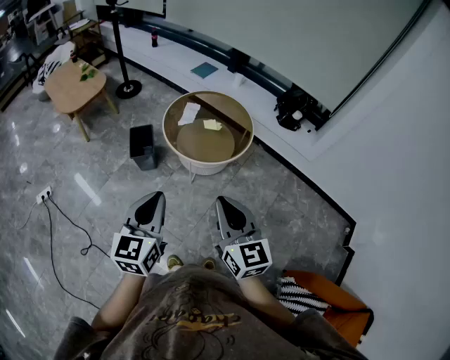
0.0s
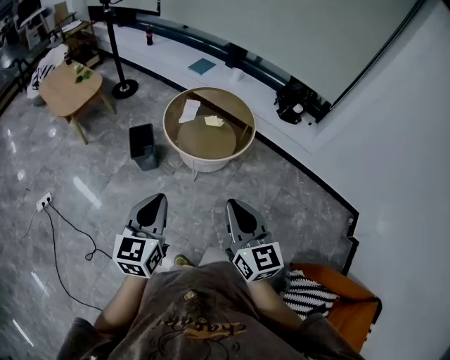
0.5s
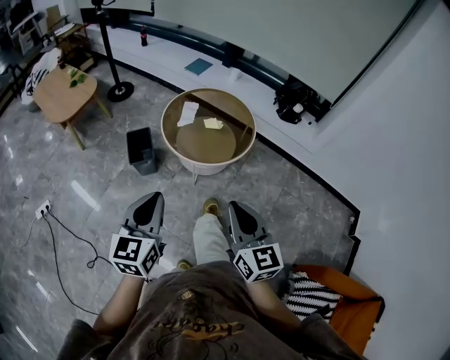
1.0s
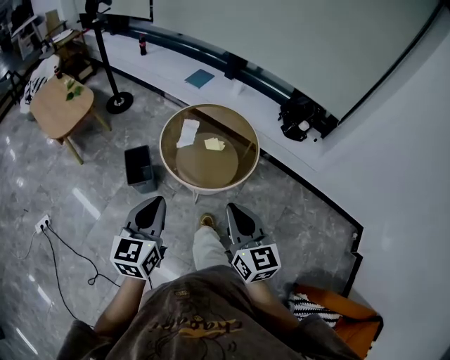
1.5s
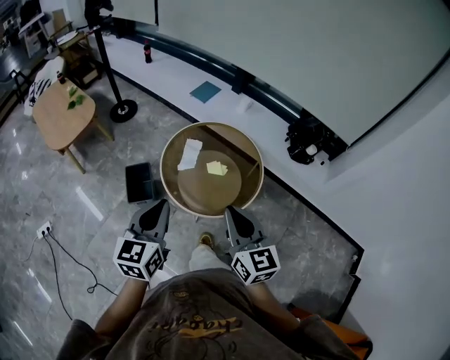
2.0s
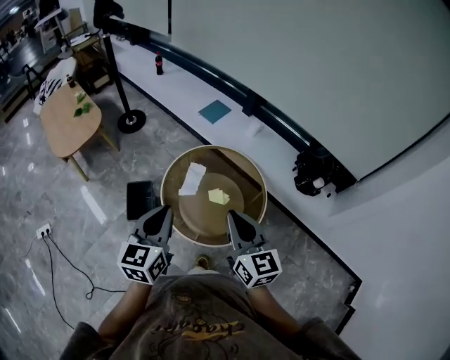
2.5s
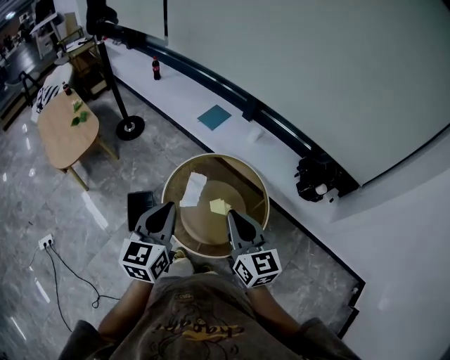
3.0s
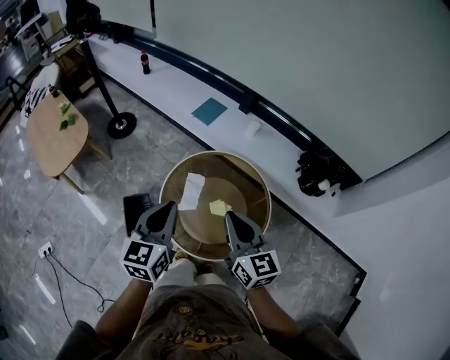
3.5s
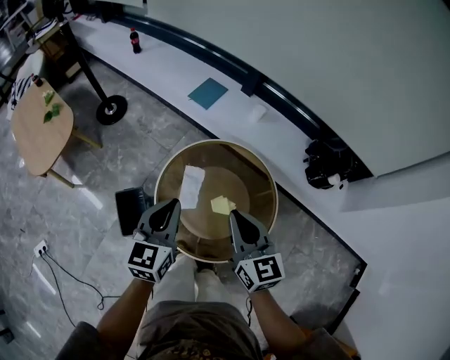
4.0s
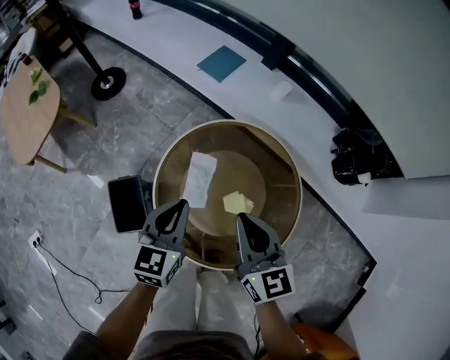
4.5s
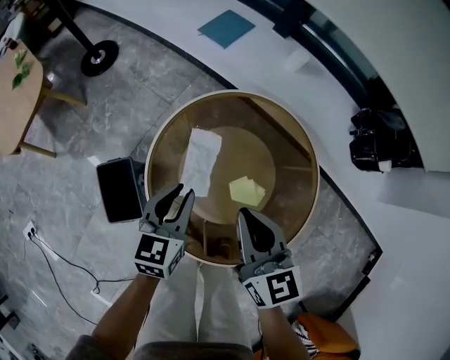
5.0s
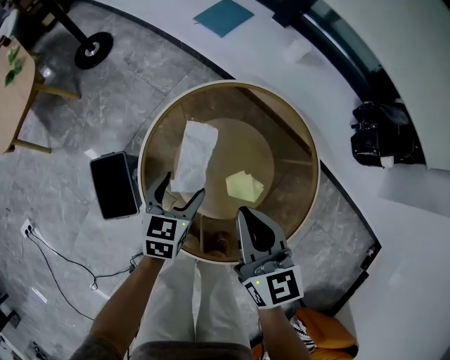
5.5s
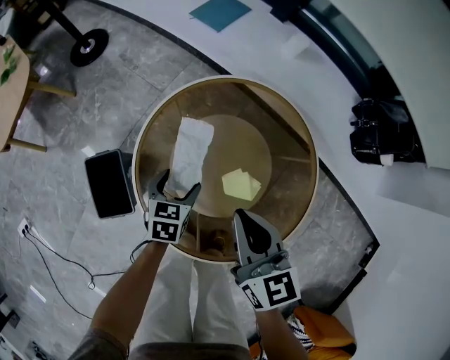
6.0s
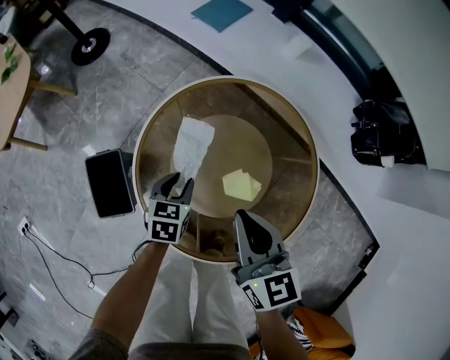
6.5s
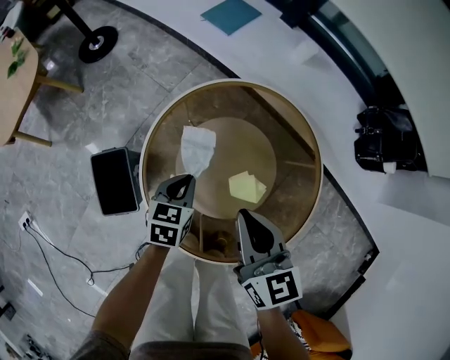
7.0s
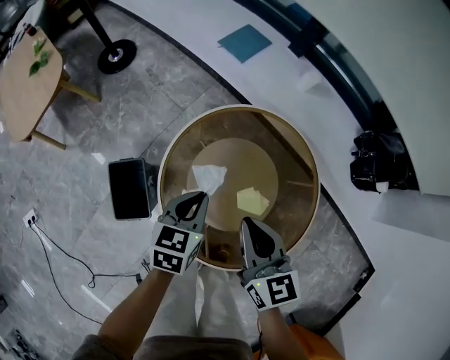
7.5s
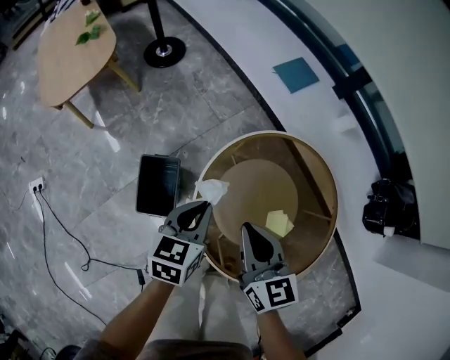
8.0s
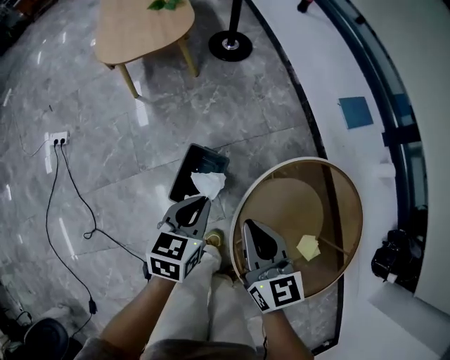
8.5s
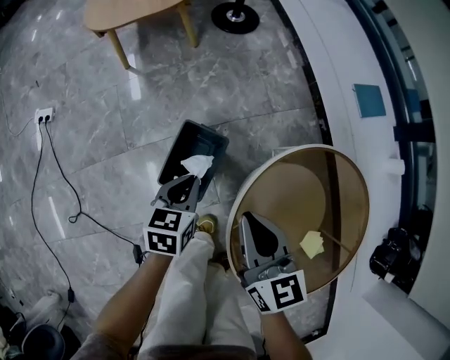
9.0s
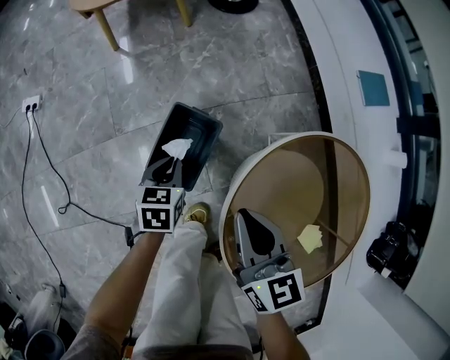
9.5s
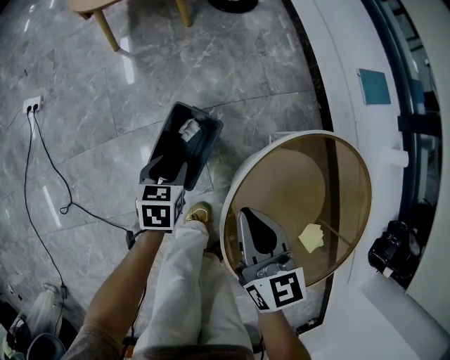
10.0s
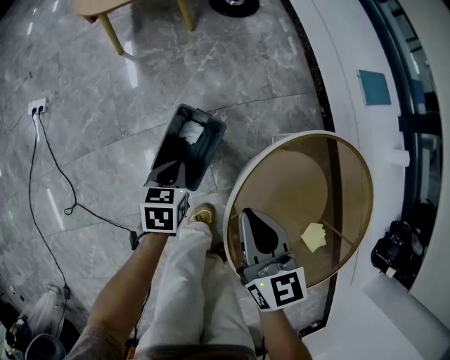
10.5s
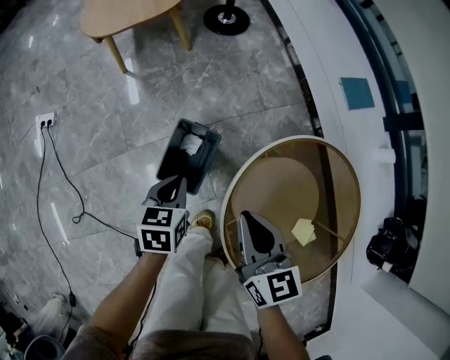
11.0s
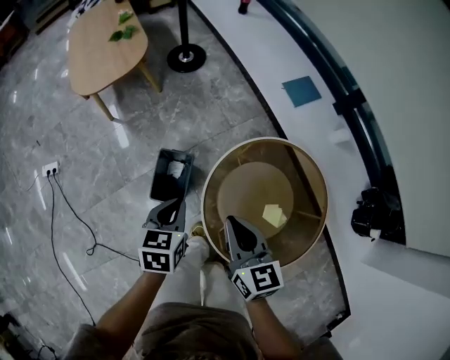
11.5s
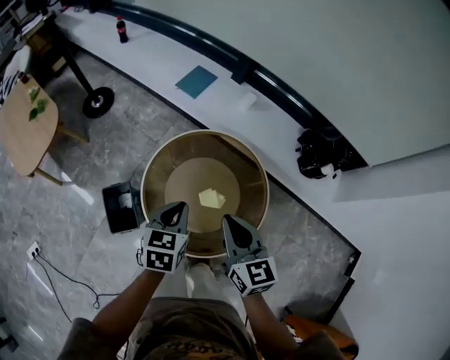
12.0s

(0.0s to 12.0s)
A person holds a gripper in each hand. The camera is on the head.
0.0s - 2.0s: Both grippers travel together forward, roughly 30 cm.
2.0s - 4.0s: Both grippers travel together forward, roughly 30 cm.
4.0s - 6.0s: The left gripper heads downward, covering about 40 cm, tips its fingers downward by approximately 30 degrees, and opens; the right gripper travels downward by some 20 cm.
6.0s - 8.0s: The right gripper heads to the left, covering about 15 cm. The left gripper goes some 20 cm upward and to the left, changes its angle by about 20 degrees, and closes up.
8.0s - 10.0s: The left gripper heads downward, covering some 25 cm, changes its angle by about 30 degrees, and opens its fingers. The right gripper moves roughly 20 cm, and changes its angle by roughly 20 degrees.
10.0s - 12.0s: The left gripper shifts some 35 cm upward, changes its angle by about 50 degrees, and closes up; the right gripper changes place by about 40 cm, and turns by roughly 40 degrees.

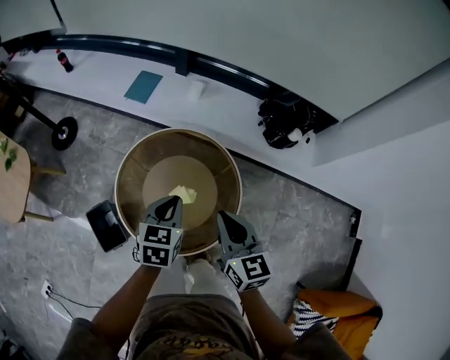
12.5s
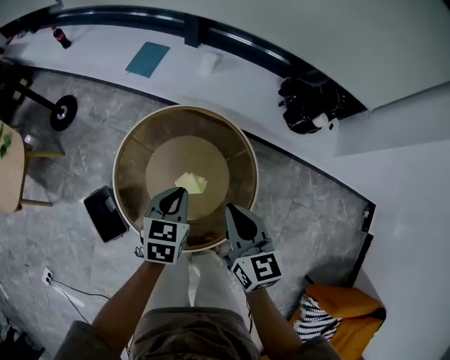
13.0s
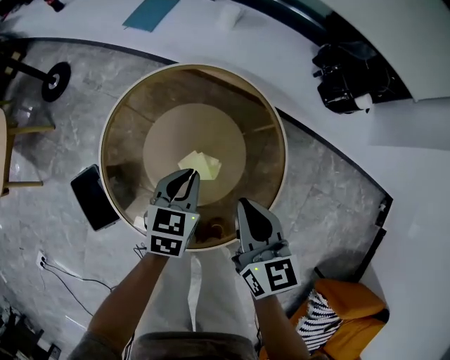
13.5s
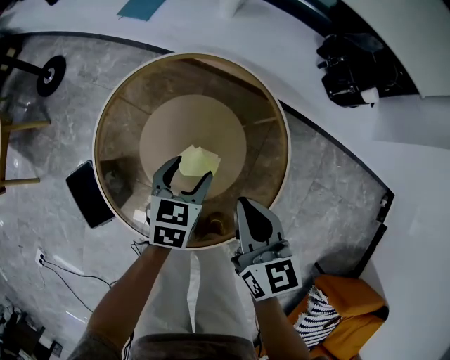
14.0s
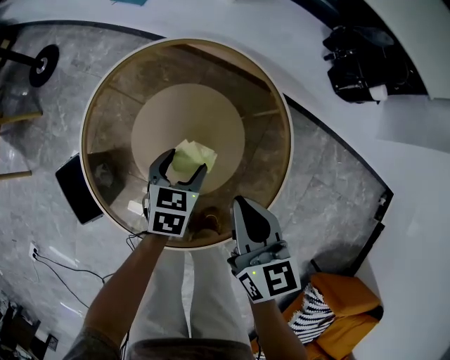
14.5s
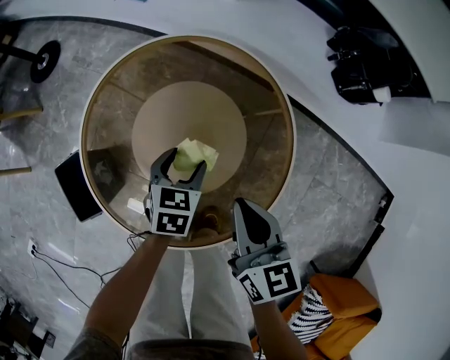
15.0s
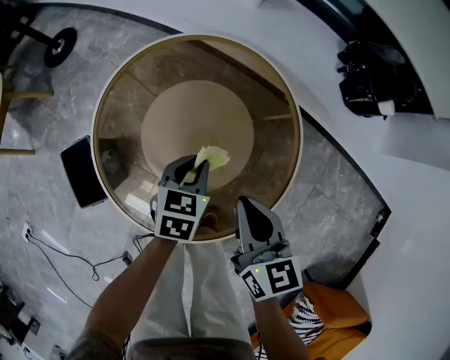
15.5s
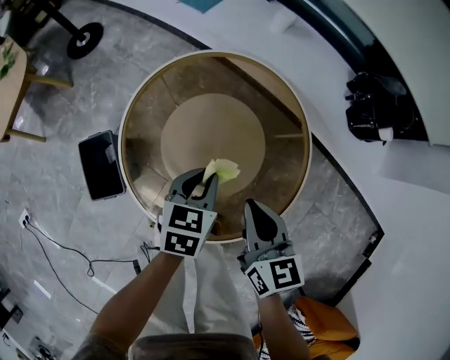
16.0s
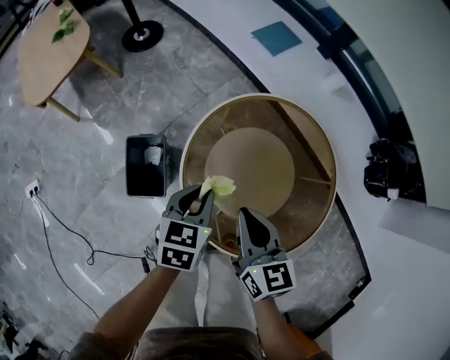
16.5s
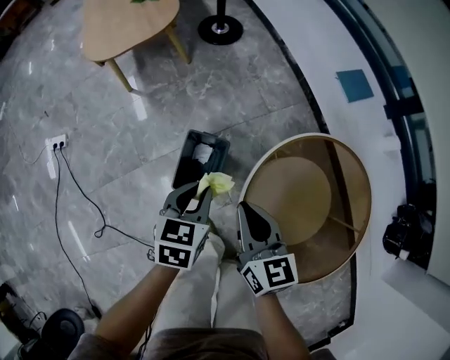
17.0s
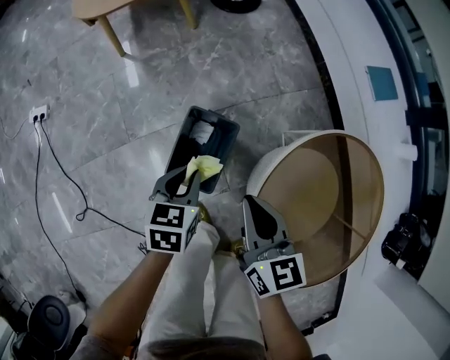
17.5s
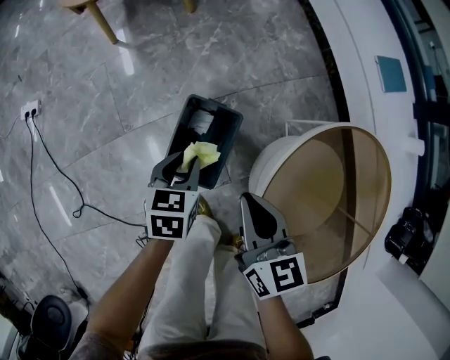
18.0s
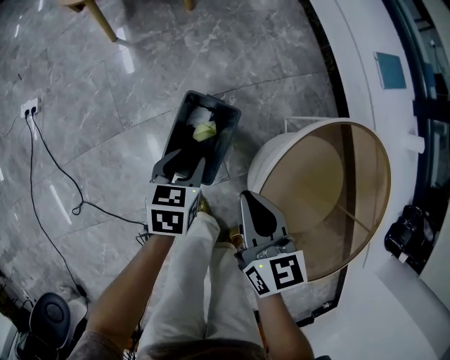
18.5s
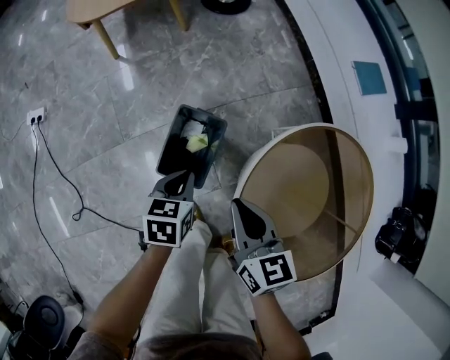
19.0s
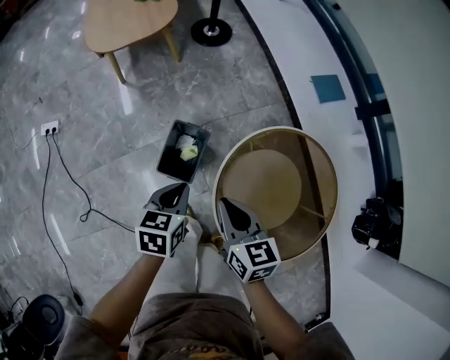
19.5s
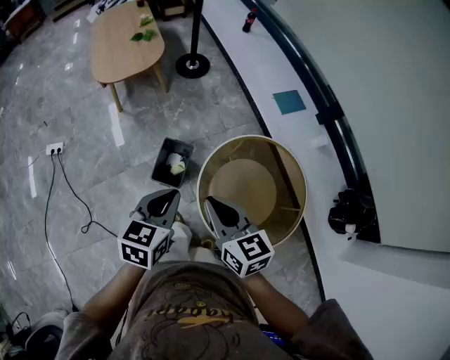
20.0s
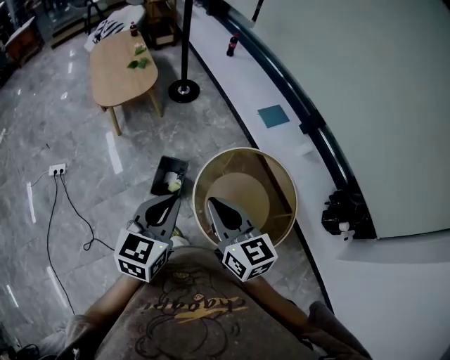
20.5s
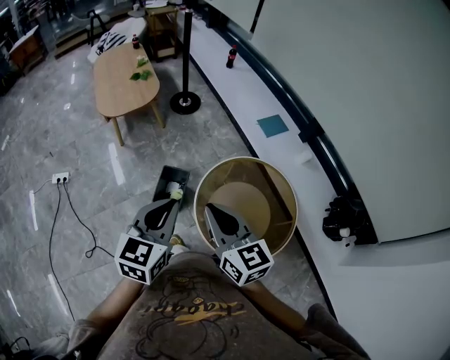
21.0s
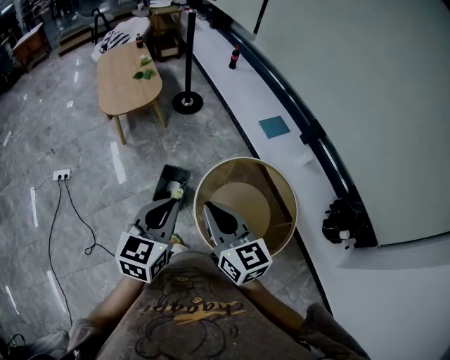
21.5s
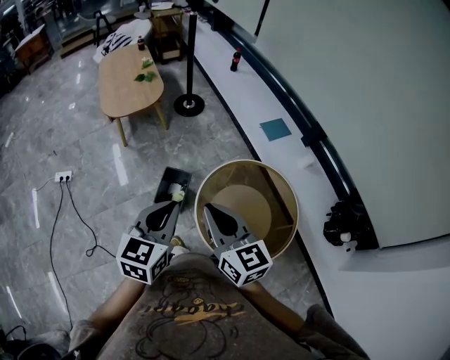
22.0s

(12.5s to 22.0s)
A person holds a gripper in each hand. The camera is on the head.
12.5s - 14.5s: Both grippers travel together downward, some 30 cm. The left gripper opens.
14.5s - 16.5s: The right gripper heads to the left, covering approximately 20 cm, and rotates about 30 degrees; the left gripper travels to the left and upward by some 25 cm, turns by roughly 30 degrees, and closes up.
16.5s - 18.0s: The left gripper is displaced to the left and downward by about 35 cm, and changes its angle by roughly 30 degrees; the right gripper moves to the left, downward and forward, some 30 cm, and rotates roughly 20 degrees.
18.0s - 20.0s: The left gripper travels upward by about 50 cm, and rotates about 20 degrees. Meanwhile the right gripper heads upward and backward, covering roughly 40 cm.
20.0s - 22.0s: The grippers both shift upward and backward by about 10 cm.

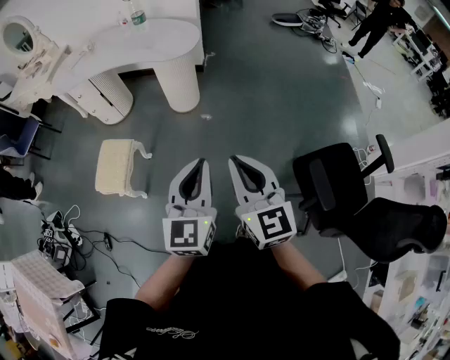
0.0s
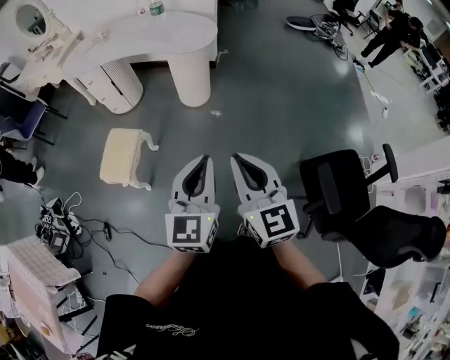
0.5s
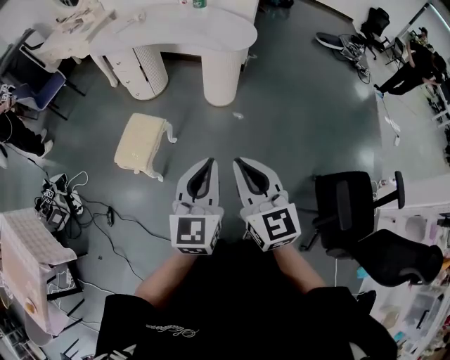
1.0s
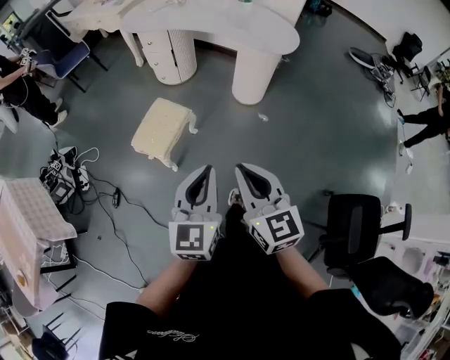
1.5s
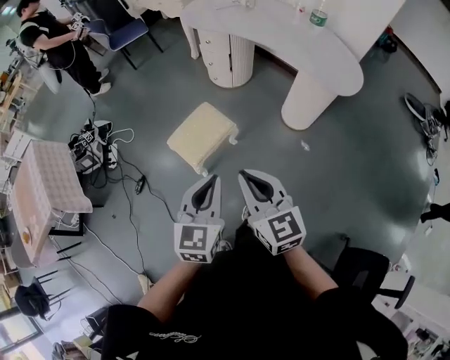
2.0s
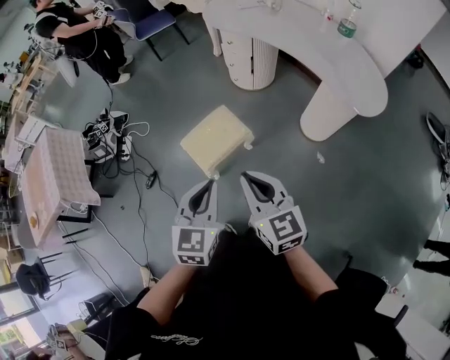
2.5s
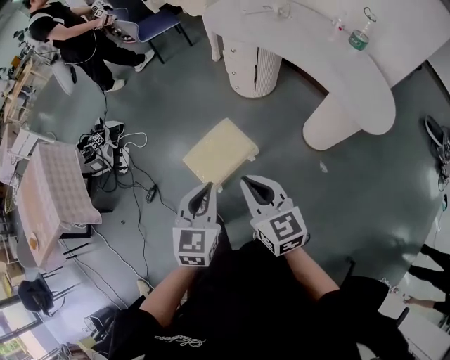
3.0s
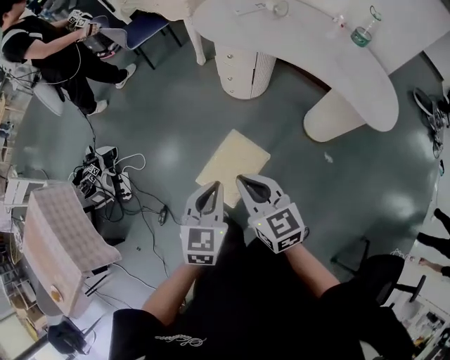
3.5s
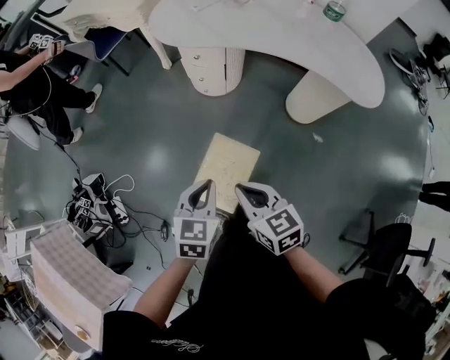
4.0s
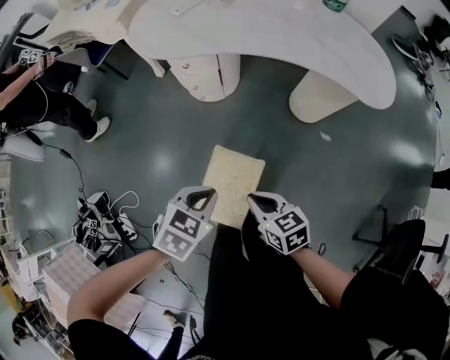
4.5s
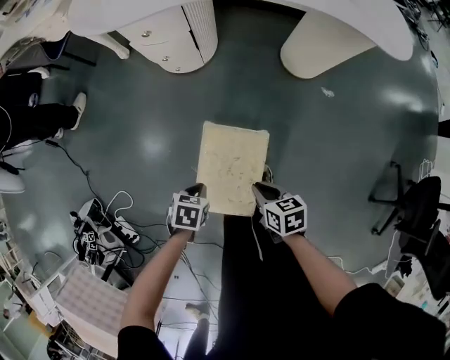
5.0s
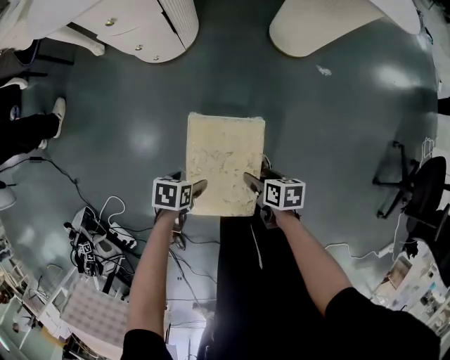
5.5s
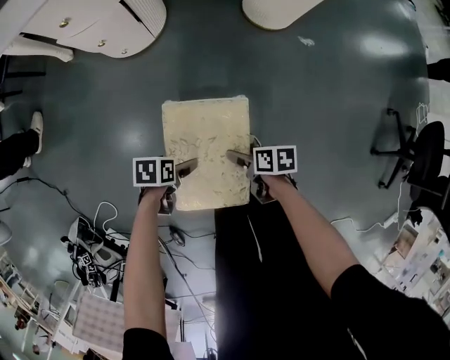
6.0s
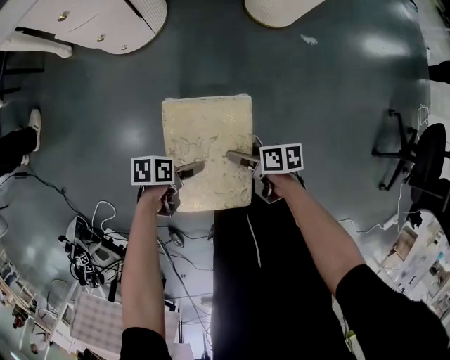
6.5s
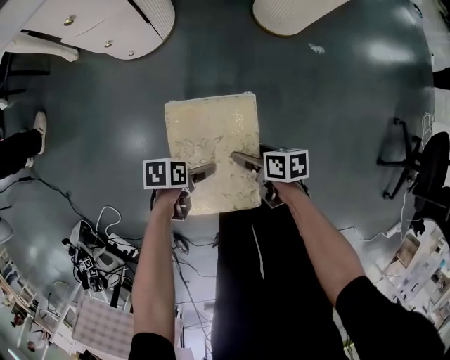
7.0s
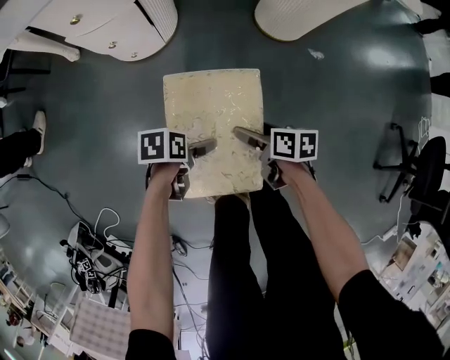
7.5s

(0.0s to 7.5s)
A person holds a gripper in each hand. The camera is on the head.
0.0s - 2.0s: The left gripper ends up some 35 cm from where it was, and turns by about 40 degrees, while the right gripper shifts by approximately 35 cm, and changes its angle by about 40 degrees.
2.0s - 4.0s: The grippers both shift forward and to the left by approximately 35 cm. The left gripper swivels approximately 30 degrees; the right gripper swivels some 30 degrees.
4.0s - 5.5s: Both grippers travel together downward, about 50 cm. The right gripper twists about 50 degrees clockwise, seen from behind, and opens. The left gripper rotates roughly 50 degrees, and opens up.
5.5s - 7.5s: The right gripper ends up about 15 cm from where it was. Meanwhile the left gripper moves some 15 cm, and opens its fingers.
